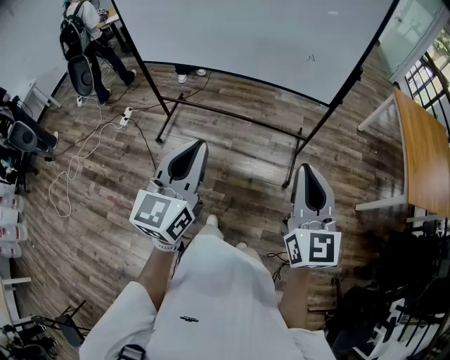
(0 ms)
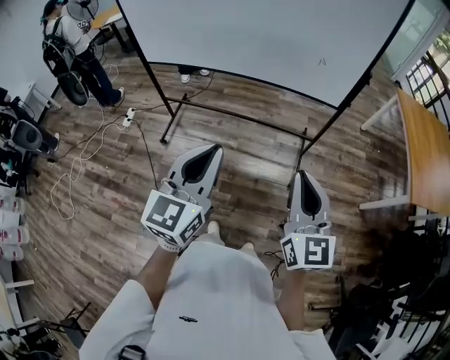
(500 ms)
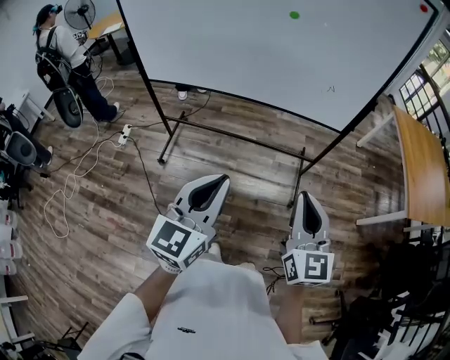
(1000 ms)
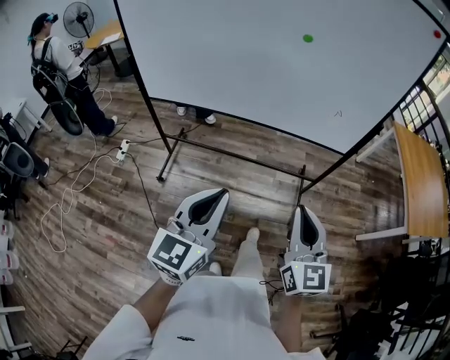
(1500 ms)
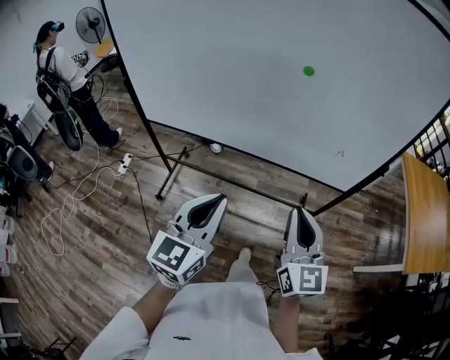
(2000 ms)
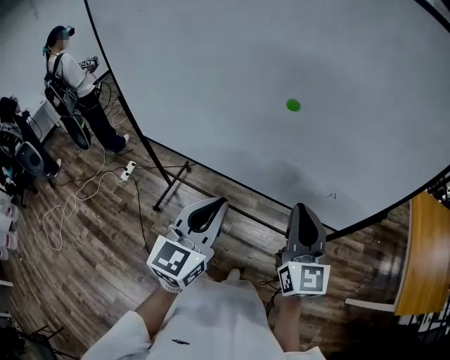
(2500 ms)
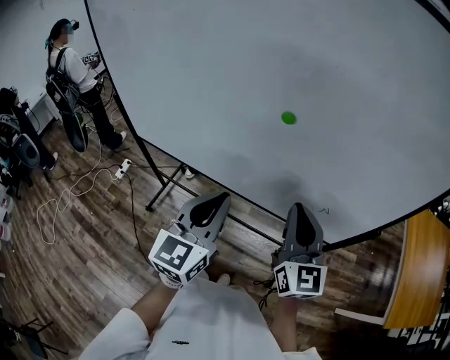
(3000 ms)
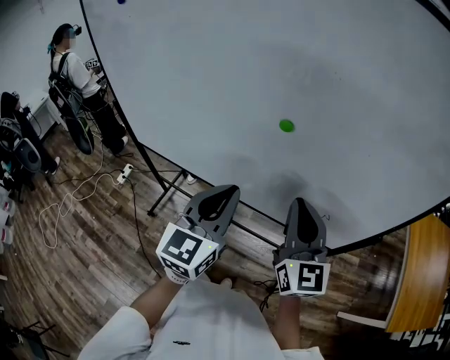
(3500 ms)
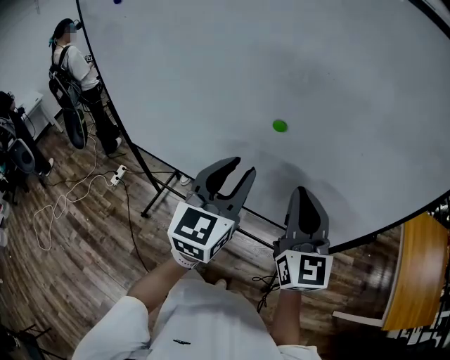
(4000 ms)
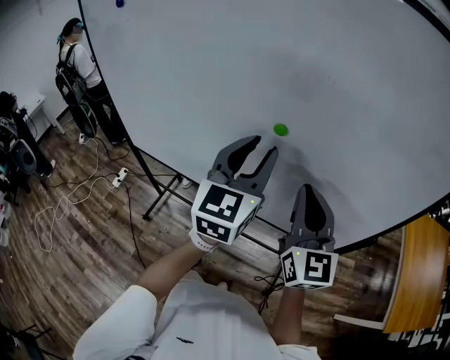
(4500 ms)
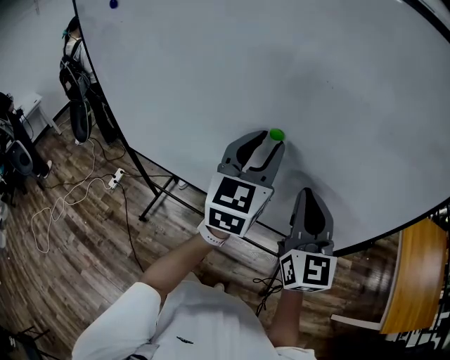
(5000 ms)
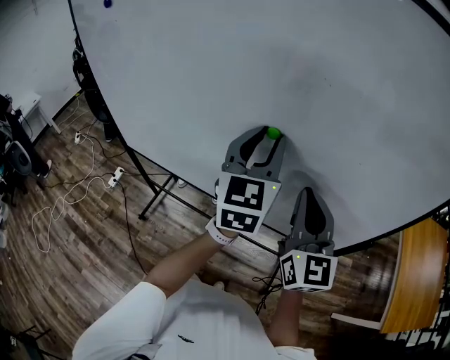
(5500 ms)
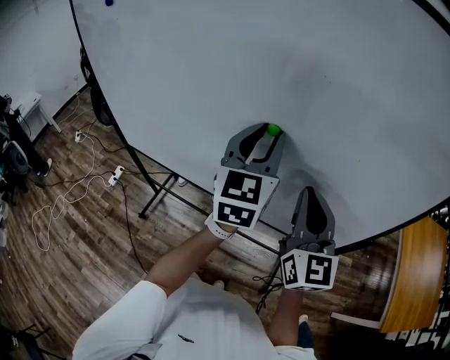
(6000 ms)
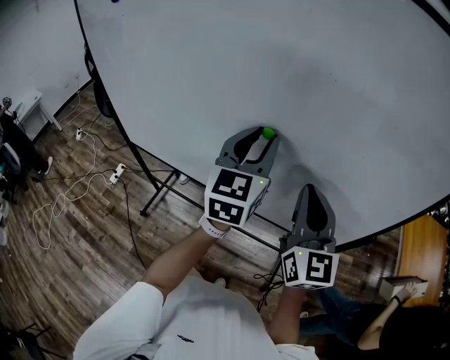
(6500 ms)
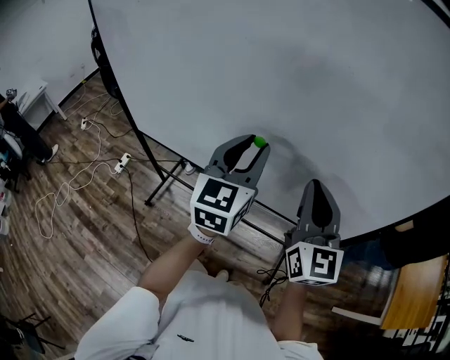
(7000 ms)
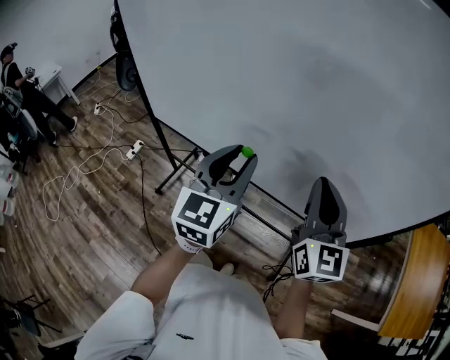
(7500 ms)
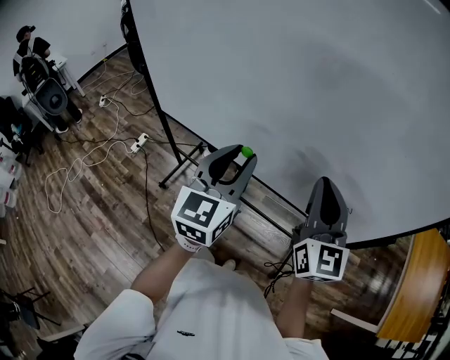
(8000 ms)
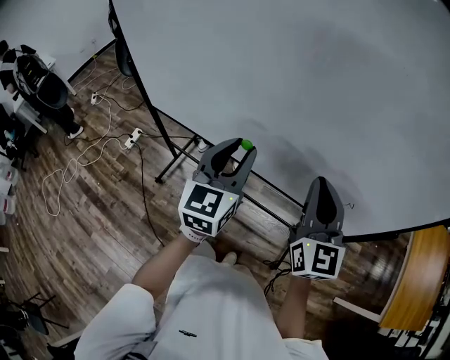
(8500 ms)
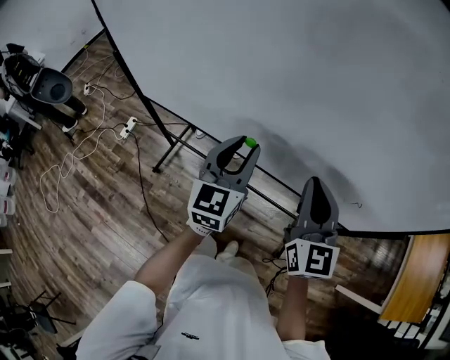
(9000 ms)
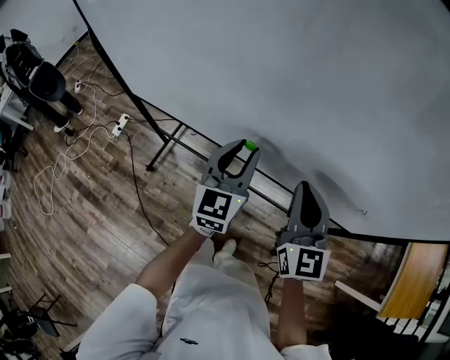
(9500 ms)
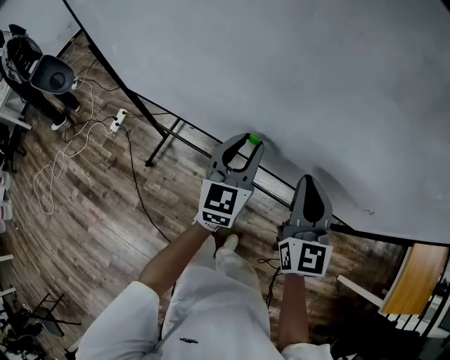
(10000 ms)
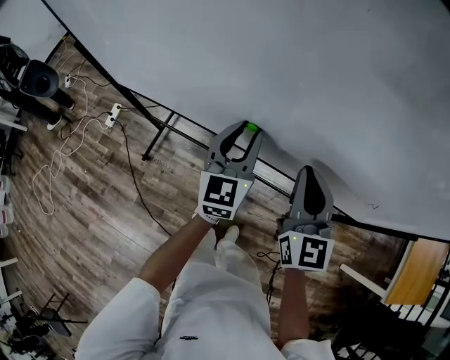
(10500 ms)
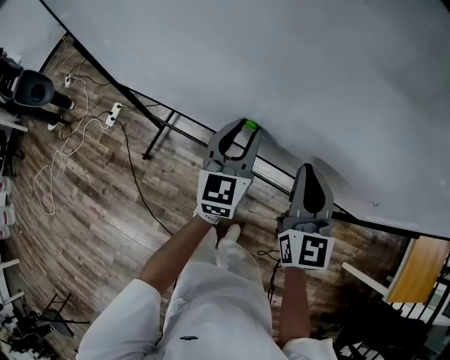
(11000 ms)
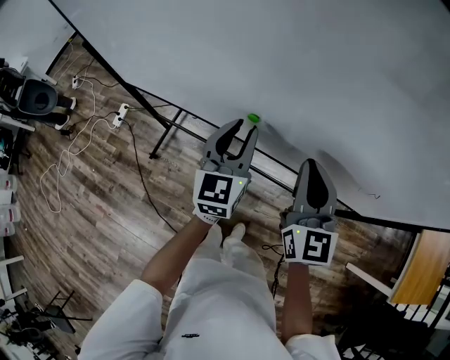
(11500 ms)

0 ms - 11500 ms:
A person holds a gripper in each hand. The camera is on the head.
0 ms - 2000 ms: Both grippers travel together forward and to the left, approximately 25 cm.
2000 ms - 4000 ms: The right gripper heads forward, covering roughly 20 cm, while the left gripper travels forward and to the right by roughly 25 cm, and opens.
4000 ms - 6000 ms: The left gripper heads forward and to the right, covering approximately 10 cm.
6000 ms - 7500 ms: The right gripper is displaced to the left by roughly 5 cm. The left gripper is displaced to the left, backward and downward by about 20 cm.
7500 ms - 9500 ms: Both grippers travel together downward and forward, about 15 cm.
9500 ms - 11500 ms: The grippers stay close to where they were, moving slightly.

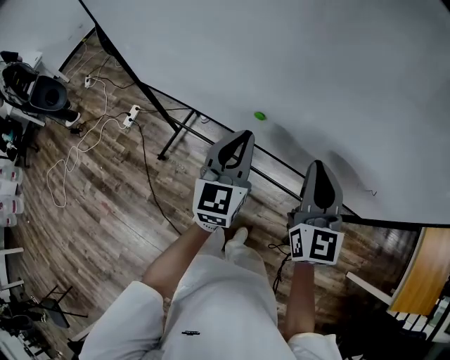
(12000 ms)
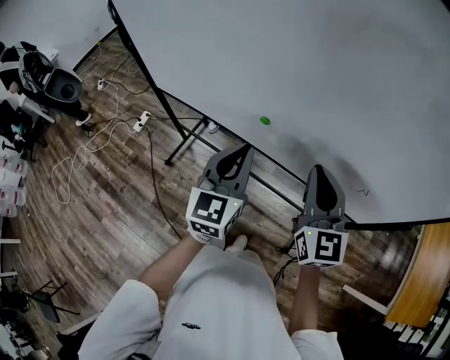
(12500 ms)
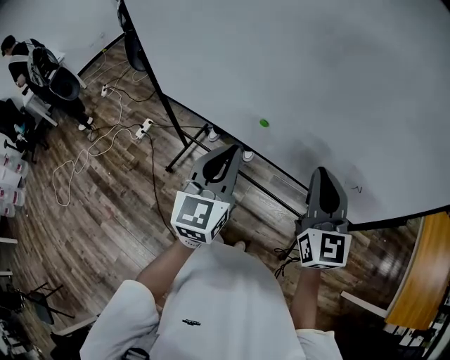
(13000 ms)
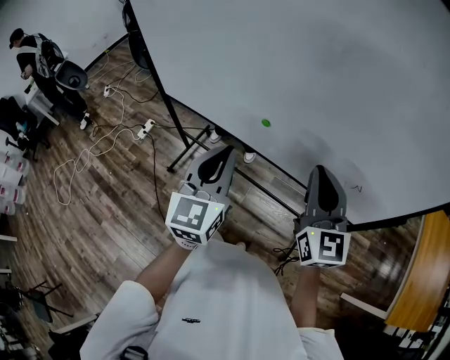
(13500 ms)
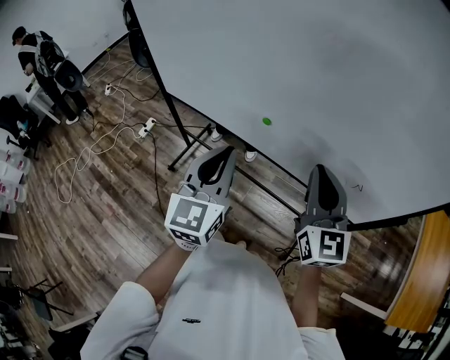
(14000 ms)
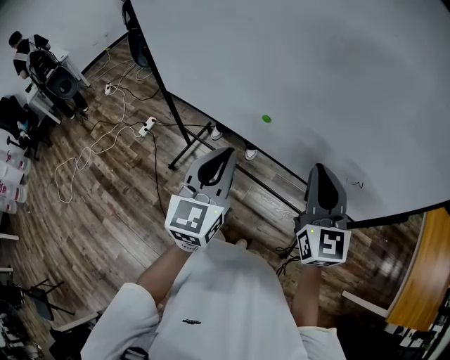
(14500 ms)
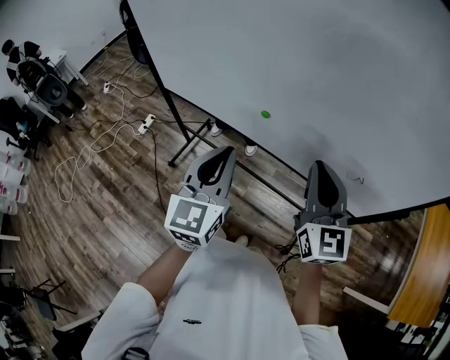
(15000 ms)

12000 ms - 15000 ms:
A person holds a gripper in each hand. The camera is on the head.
12000 ms - 13500 ms: The right gripper shifts some 10 cm upward and backward, while the left gripper is displaced backward and upward by approximately 15 cm.
13500 ms - 15000 ms: The grippers move only a little.

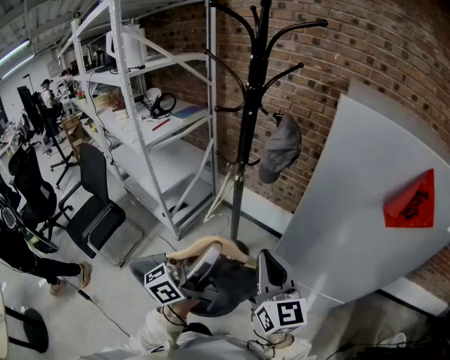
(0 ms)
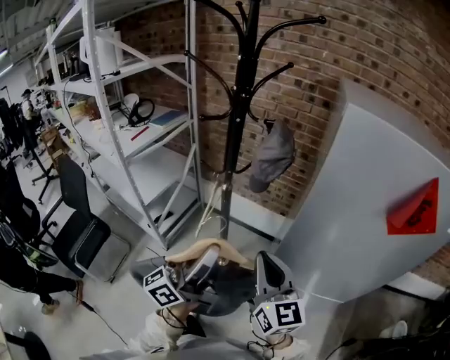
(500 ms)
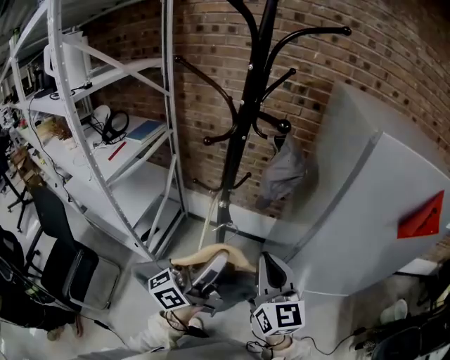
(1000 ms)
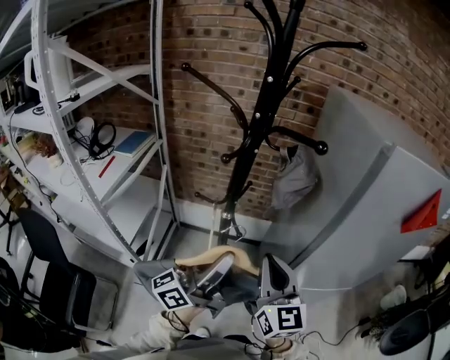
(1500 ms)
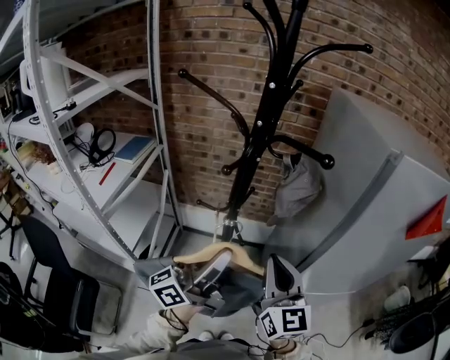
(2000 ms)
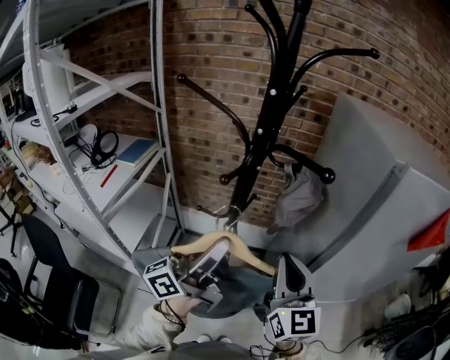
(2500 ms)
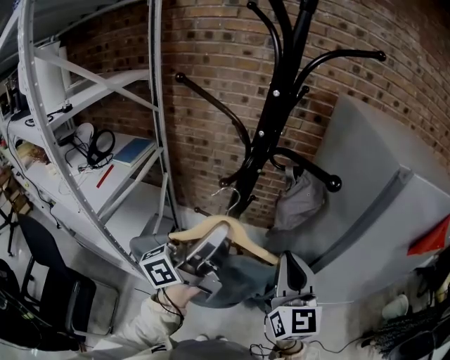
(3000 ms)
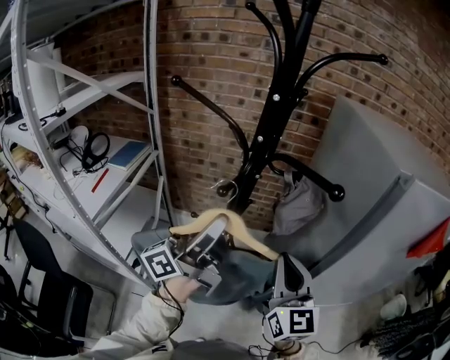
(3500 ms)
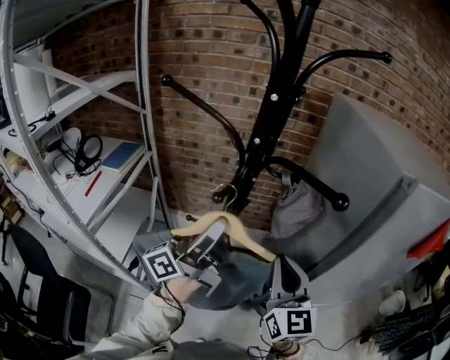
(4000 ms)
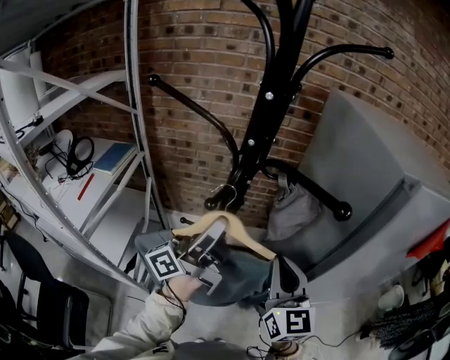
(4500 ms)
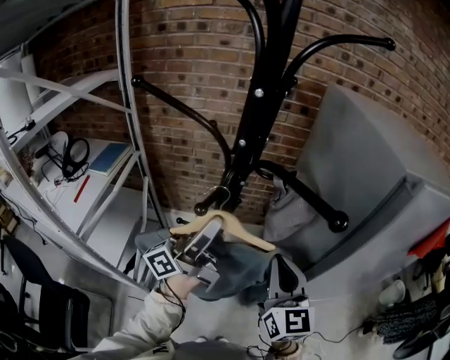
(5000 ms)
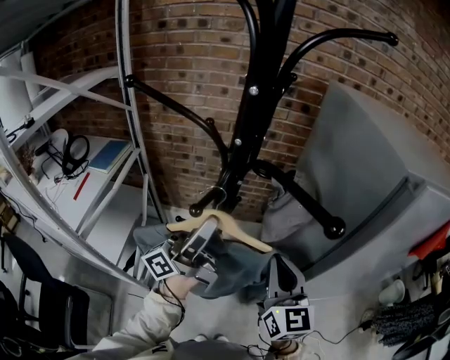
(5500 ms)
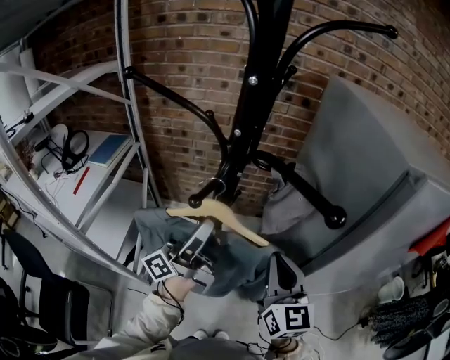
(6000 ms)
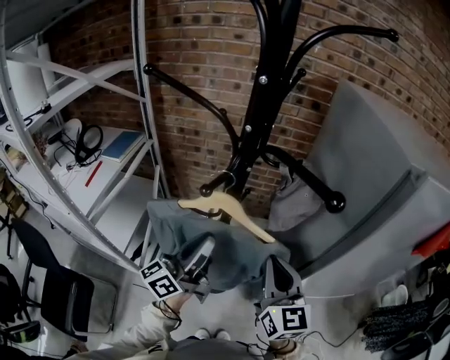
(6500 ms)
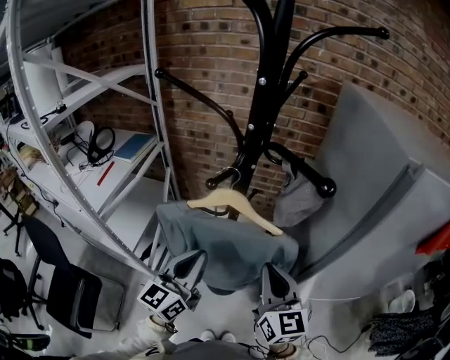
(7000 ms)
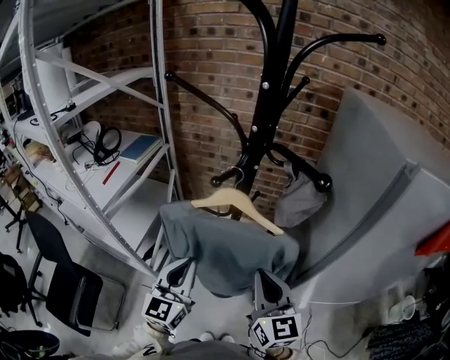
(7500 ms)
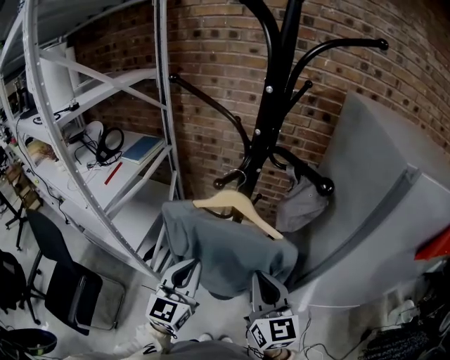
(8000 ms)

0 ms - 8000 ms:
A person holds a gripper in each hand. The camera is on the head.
0 ms - 2000 ms: The right gripper shifts by roughly 25 cm, and changes its angle by some 30 degrees. Meanwhile the left gripper shifts by roughly 25 cm, and swivels about 30 degrees.
2000 ms - 4000 ms: The right gripper travels forward by approximately 10 cm; the left gripper travels forward by approximately 10 cm.
4000 ms - 6000 ms: The left gripper travels downward by roughly 5 cm.
6000 ms - 8000 ms: The left gripper is displaced backward and downward by roughly 15 cm, rolls clockwise, seen from behind, by some 70 degrees, and closes its fingers, while the right gripper travels backward and to the left by approximately 10 cm.

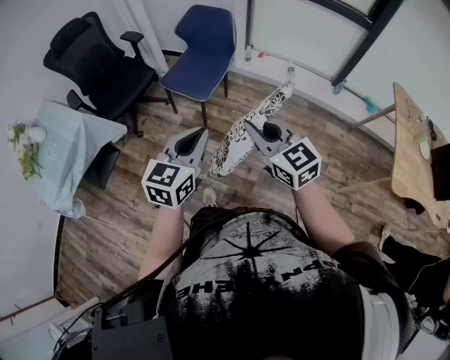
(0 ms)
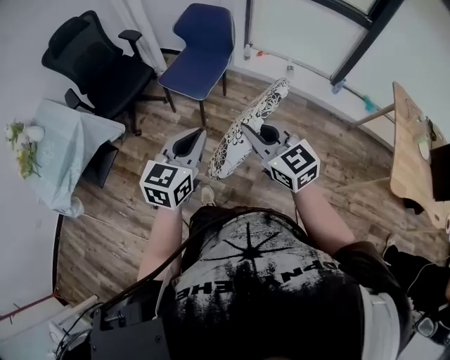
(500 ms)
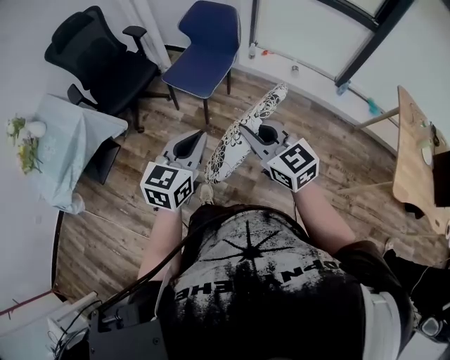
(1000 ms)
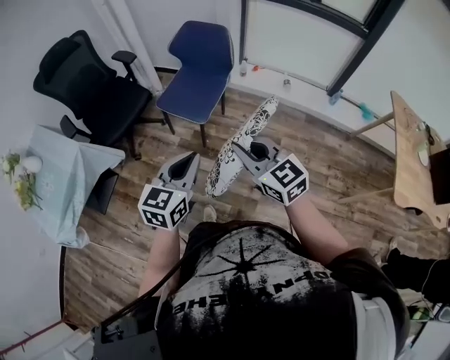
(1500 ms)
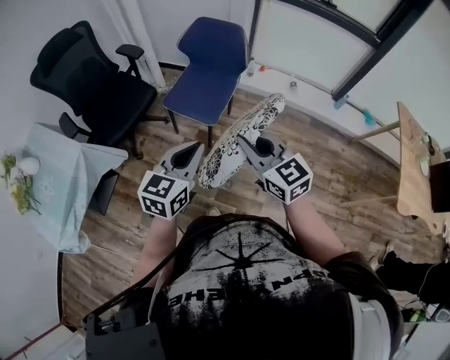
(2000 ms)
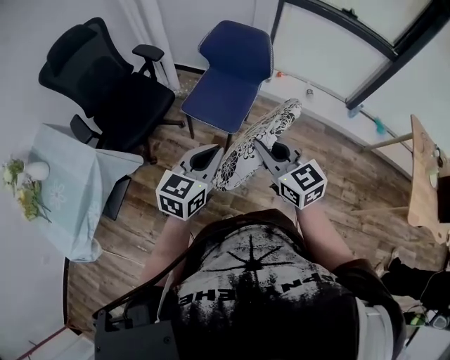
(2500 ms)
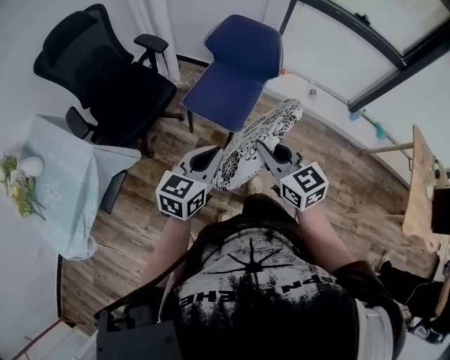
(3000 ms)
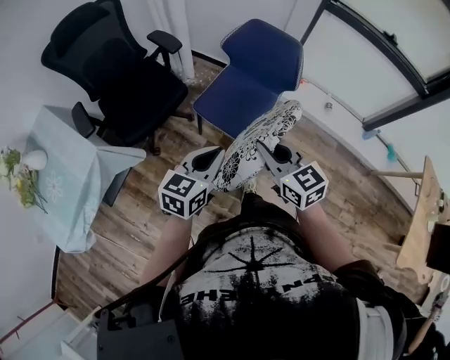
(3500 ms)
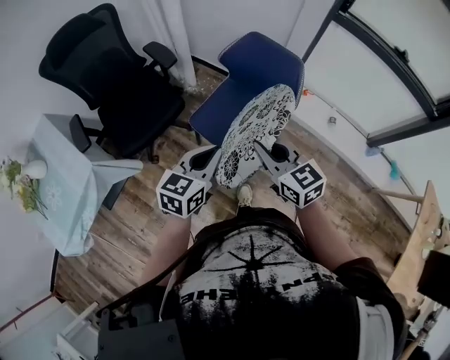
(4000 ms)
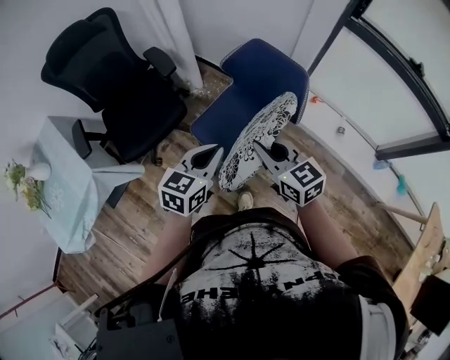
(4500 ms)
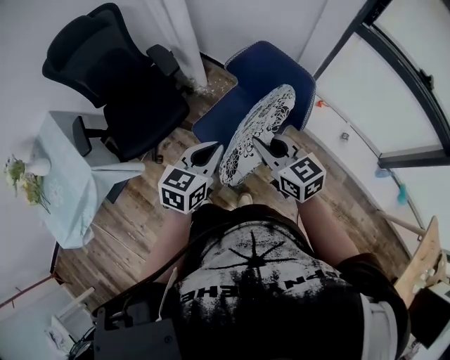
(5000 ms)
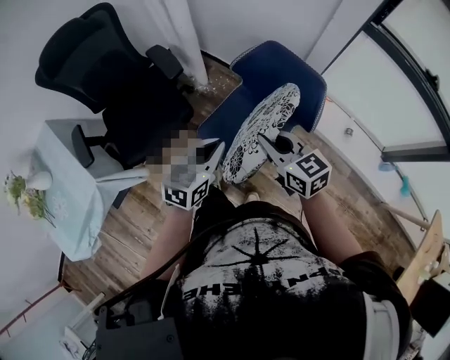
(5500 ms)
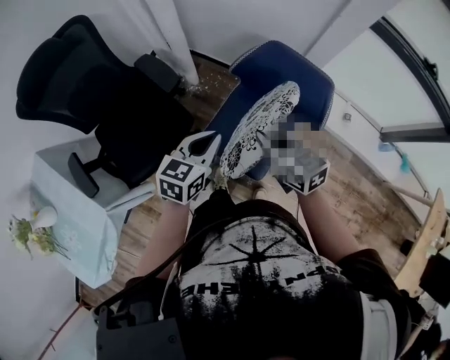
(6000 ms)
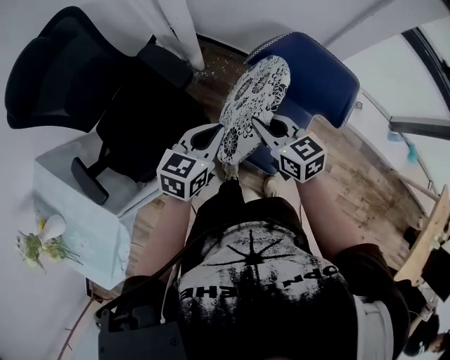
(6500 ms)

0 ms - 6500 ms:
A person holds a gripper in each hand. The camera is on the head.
0 ms - 2000 ms: Both grippers move forward and to the left, roughly 20 cm.
2000 ms - 4500 ms: Both grippers move forward, approximately 35 cm.
4500 ms - 6500 ms: The right gripper goes about 30 cm forward, to the left and downward, while the left gripper travels forward and to the left by about 25 cm.
